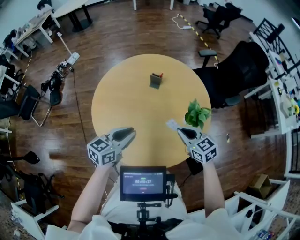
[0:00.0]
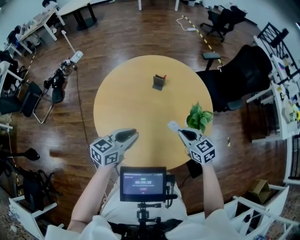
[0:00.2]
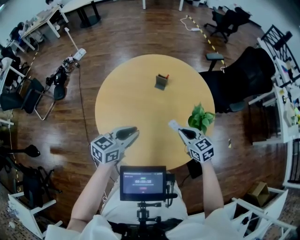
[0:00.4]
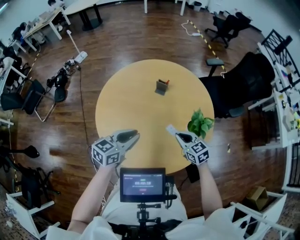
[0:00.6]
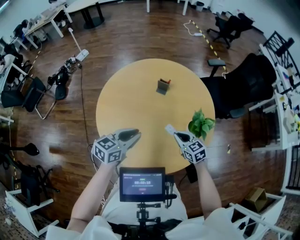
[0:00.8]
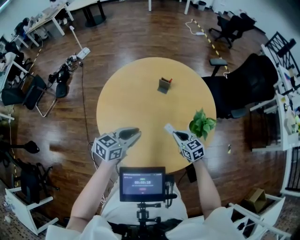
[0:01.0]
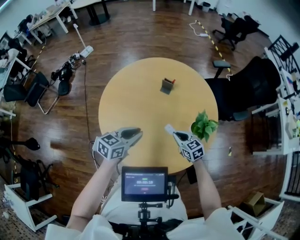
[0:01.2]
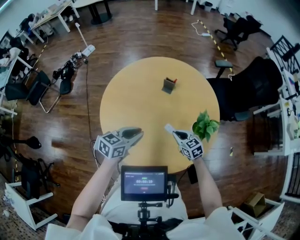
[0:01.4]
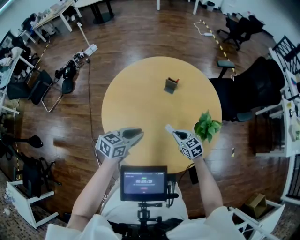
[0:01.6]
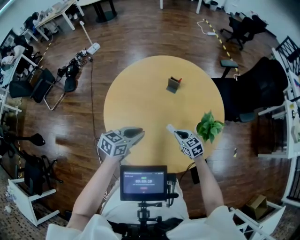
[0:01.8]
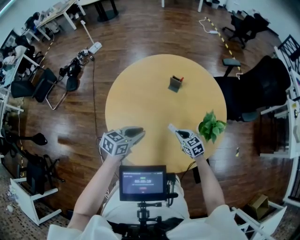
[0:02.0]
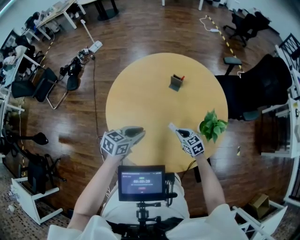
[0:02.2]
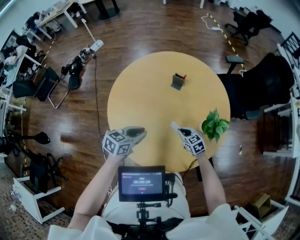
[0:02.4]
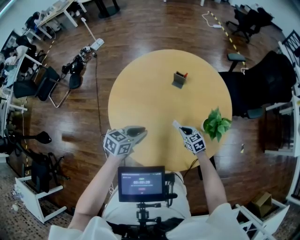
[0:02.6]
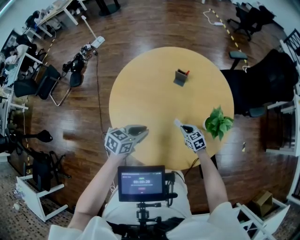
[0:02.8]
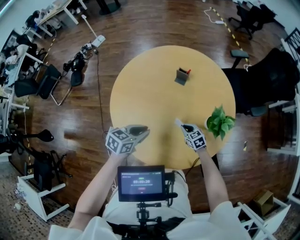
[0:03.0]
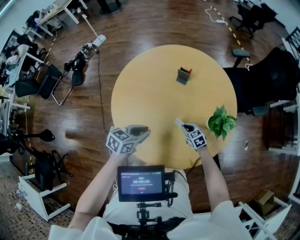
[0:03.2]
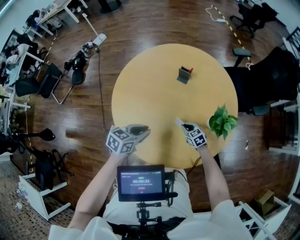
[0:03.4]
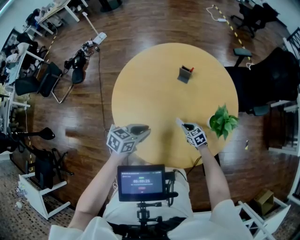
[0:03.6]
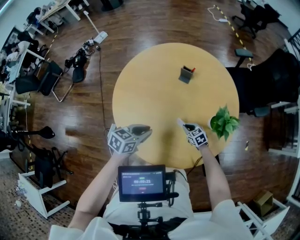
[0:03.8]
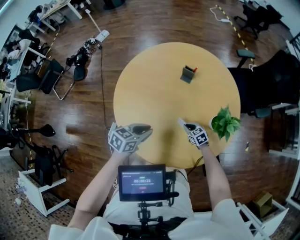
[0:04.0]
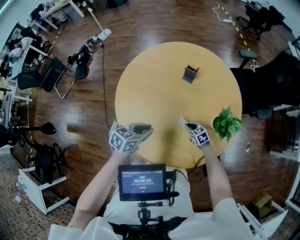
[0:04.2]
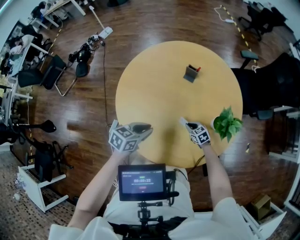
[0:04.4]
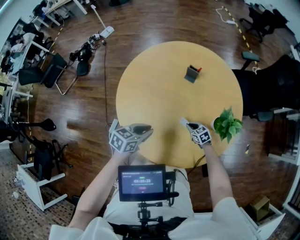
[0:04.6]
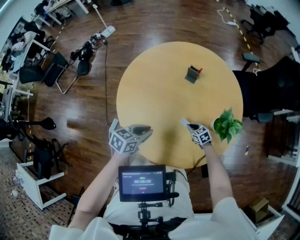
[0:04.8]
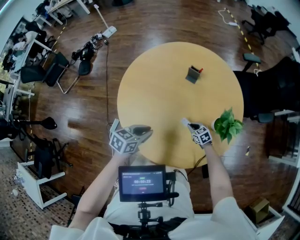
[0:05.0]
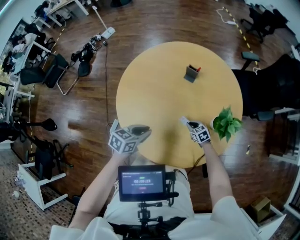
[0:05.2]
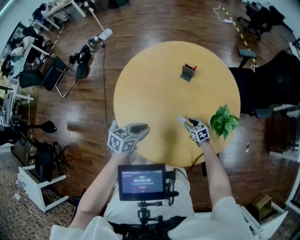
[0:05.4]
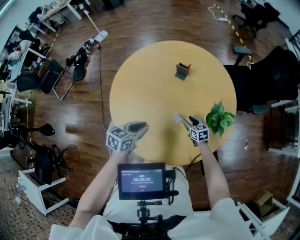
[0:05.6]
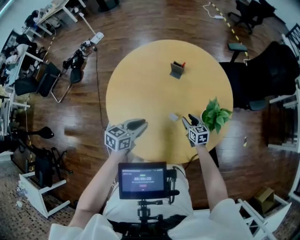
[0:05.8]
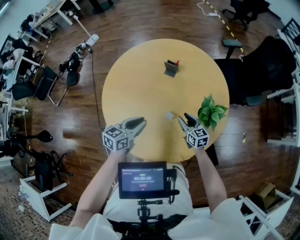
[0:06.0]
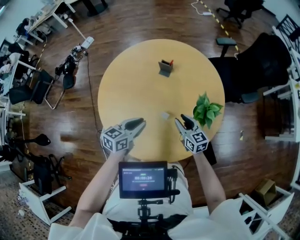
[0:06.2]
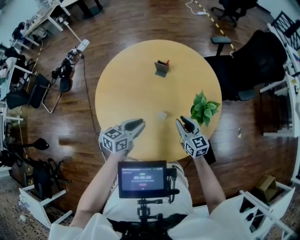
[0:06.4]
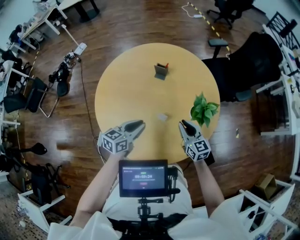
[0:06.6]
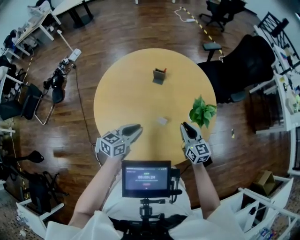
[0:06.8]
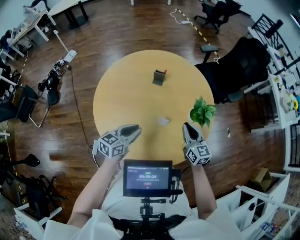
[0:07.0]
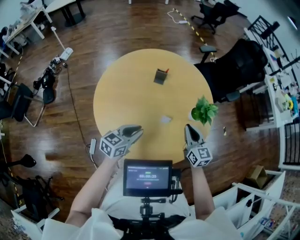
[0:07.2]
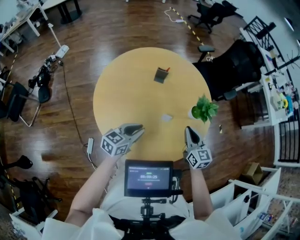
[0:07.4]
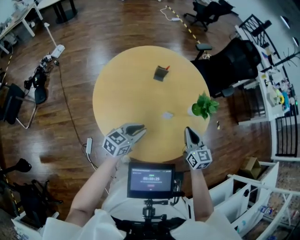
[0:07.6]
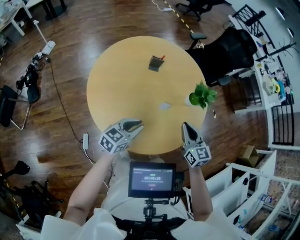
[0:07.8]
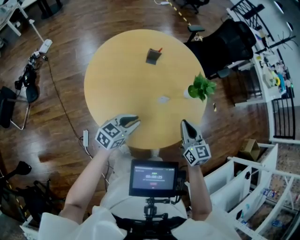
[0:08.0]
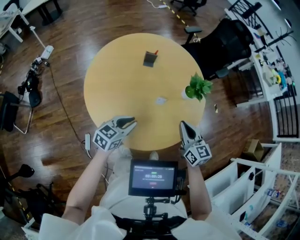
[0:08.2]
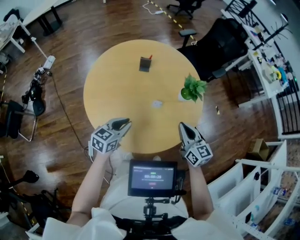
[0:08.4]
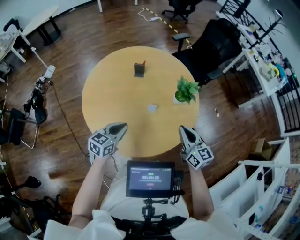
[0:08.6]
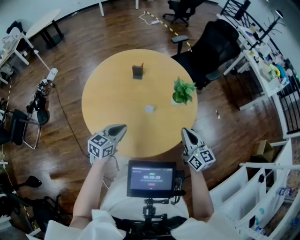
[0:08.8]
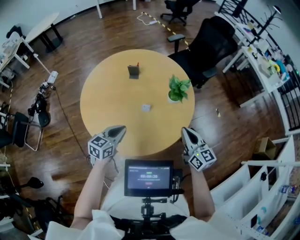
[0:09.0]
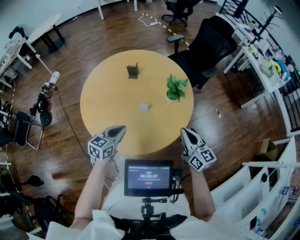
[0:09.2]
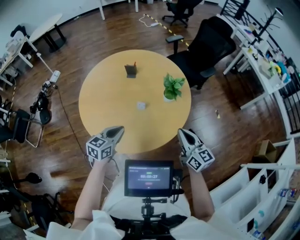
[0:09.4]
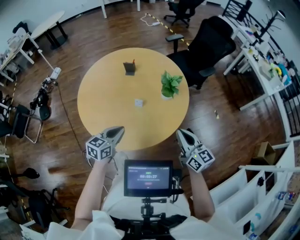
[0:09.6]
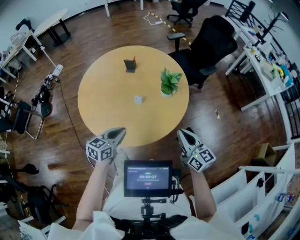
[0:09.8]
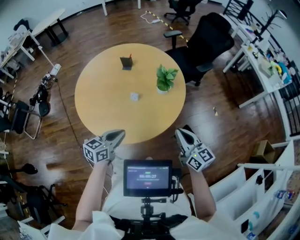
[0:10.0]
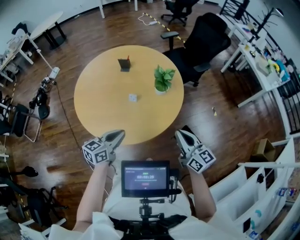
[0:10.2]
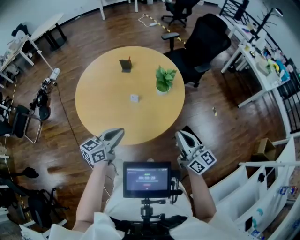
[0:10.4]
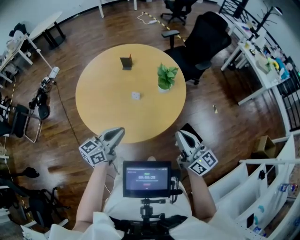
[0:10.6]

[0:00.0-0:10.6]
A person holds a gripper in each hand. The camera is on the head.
0:00.0 to 0:01.6: The left gripper is displaced downward by some 5 cm. Meanwhile the right gripper shifts approximately 15 cm downward.
0:01.6 to 0:03.0: The left gripper changes place by about 5 cm, while the right gripper moves downward, some 10 cm.
0:03.0 to 0:04.6: The right gripper goes some 5 cm downward.
0:04.6 to 0:06.0: The left gripper moves to the right, some 5 cm. Meanwhile the right gripper heads upward, covering approximately 15 cm, swivels about 30 degrees, and opens its fingers.
0:06.0 to 0:07.6: The right gripper heads upward, covering about 15 cm, changes its angle by roughly 30 degrees, and closes up. Meanwhile the left gripper moves some 10 cm, and turns by about 30 degrees.
0:07.6 to 0:09.0: The left gripper shifts some 10 cm to the right; the right gripper heads to the right and backward, covering roughly 20 cm.
0:09.0 to 0:10.6: Both grippers move backward, to the right and upward, about 15 cm. The left gripper turns by approximately 20 degrees.

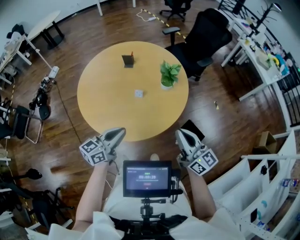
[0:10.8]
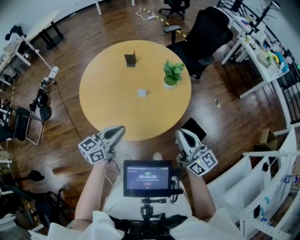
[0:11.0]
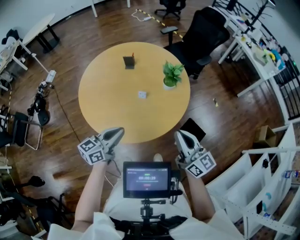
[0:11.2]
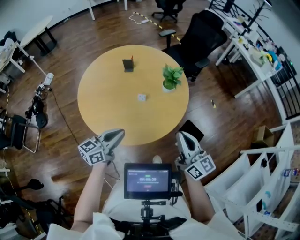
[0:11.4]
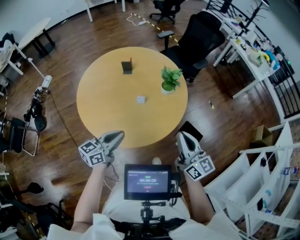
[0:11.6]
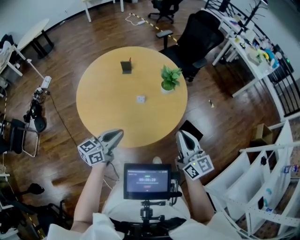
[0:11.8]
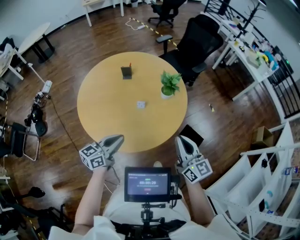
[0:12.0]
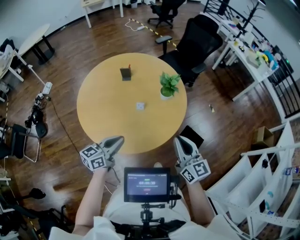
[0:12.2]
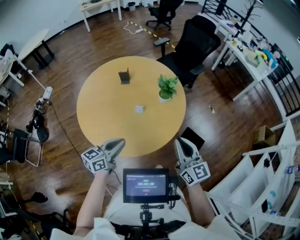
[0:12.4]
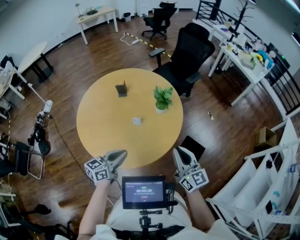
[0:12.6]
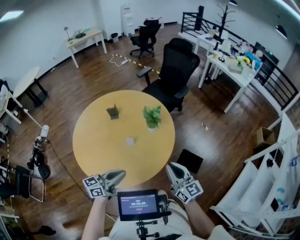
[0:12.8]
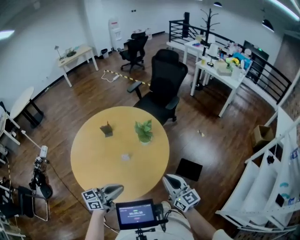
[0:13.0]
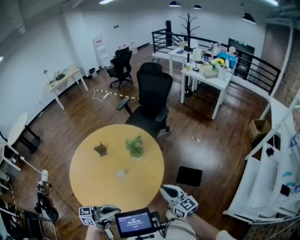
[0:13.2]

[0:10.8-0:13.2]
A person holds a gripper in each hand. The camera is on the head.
0:10.8 to 0:12.0: Both grippers travel together to the left, about 5 cm.
0:12.0 to 0:13.2: The right gripper travels to the right by some 10 cm. Meanwhile the left gripper moves to the right and upward, approximately 15 cm, and turns by approximately 40 degrees.

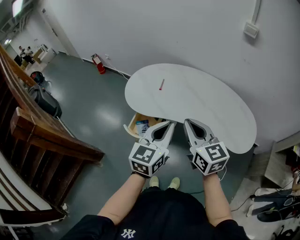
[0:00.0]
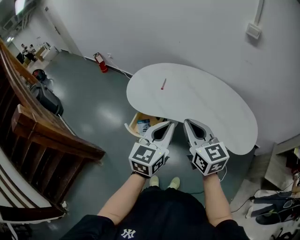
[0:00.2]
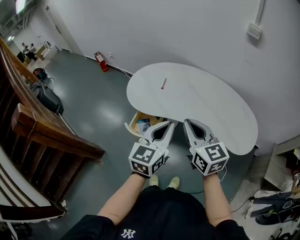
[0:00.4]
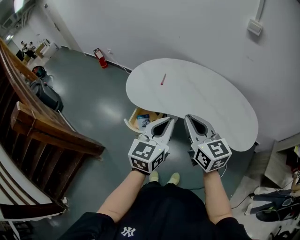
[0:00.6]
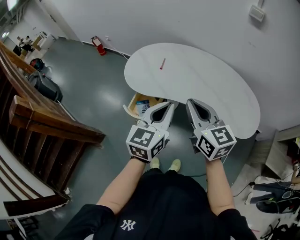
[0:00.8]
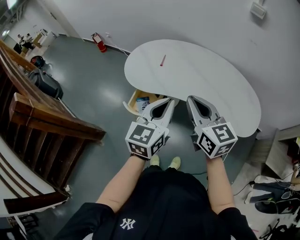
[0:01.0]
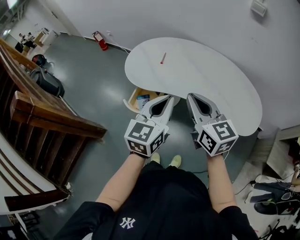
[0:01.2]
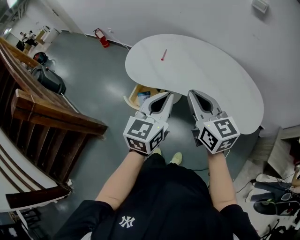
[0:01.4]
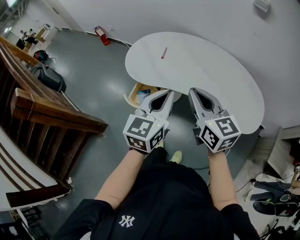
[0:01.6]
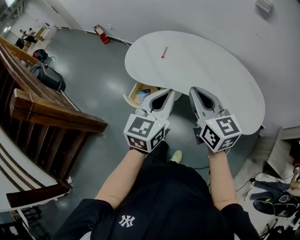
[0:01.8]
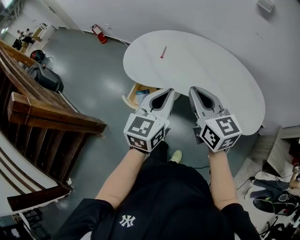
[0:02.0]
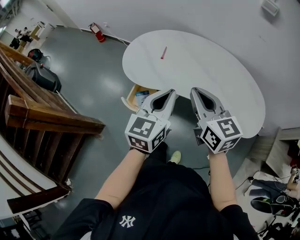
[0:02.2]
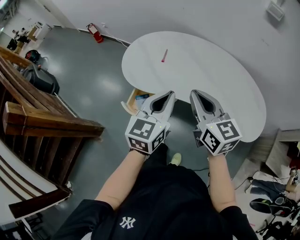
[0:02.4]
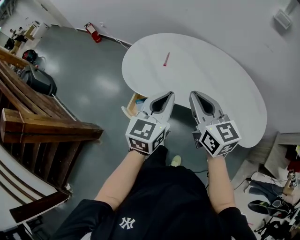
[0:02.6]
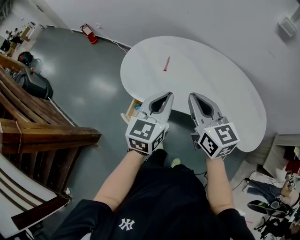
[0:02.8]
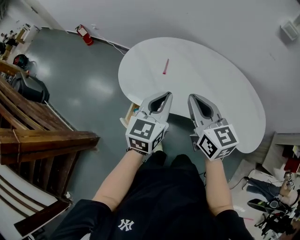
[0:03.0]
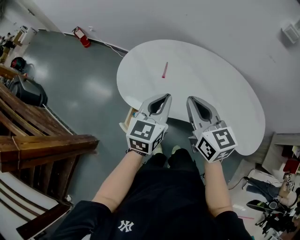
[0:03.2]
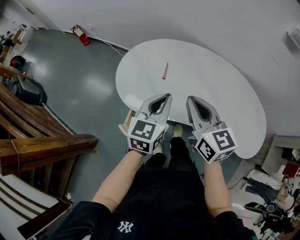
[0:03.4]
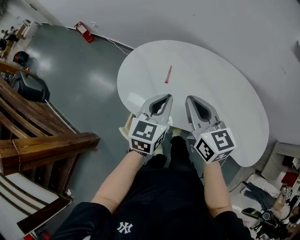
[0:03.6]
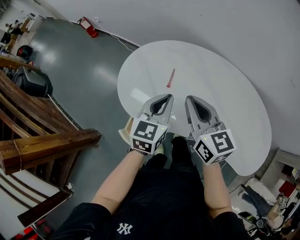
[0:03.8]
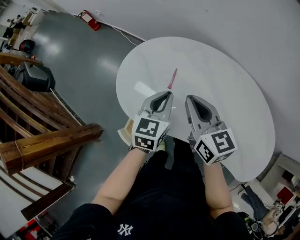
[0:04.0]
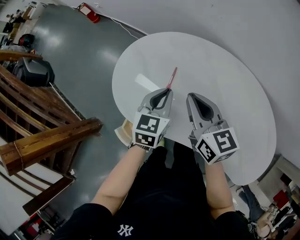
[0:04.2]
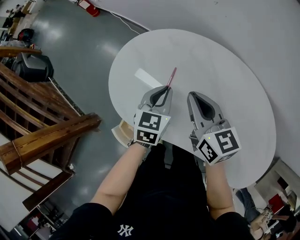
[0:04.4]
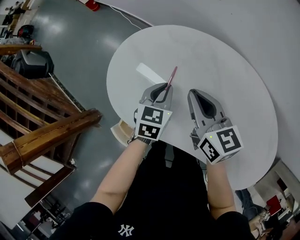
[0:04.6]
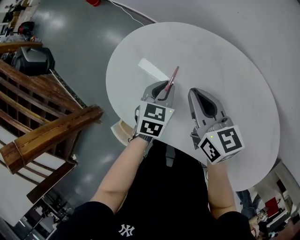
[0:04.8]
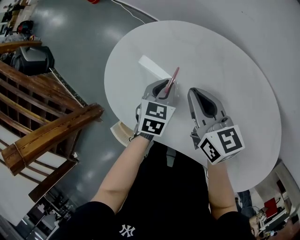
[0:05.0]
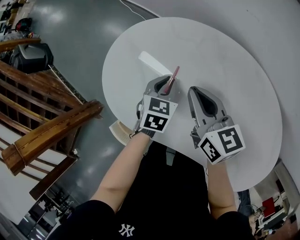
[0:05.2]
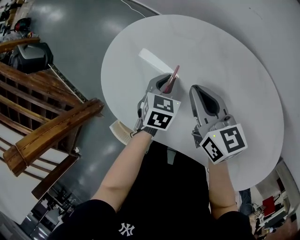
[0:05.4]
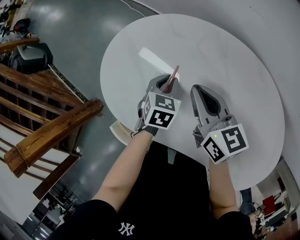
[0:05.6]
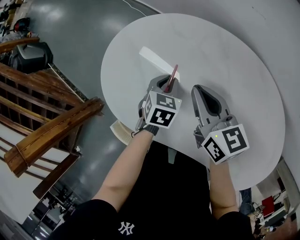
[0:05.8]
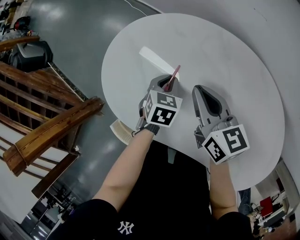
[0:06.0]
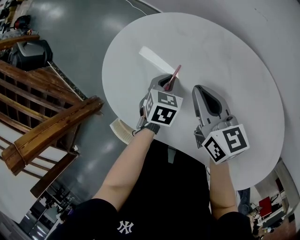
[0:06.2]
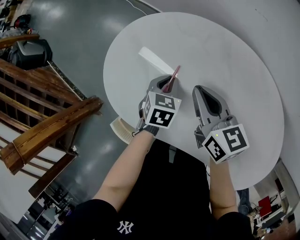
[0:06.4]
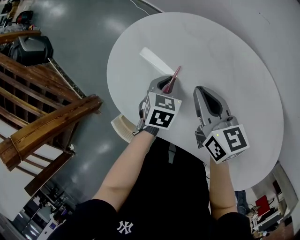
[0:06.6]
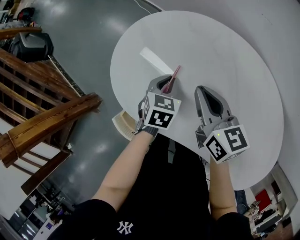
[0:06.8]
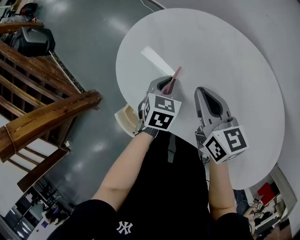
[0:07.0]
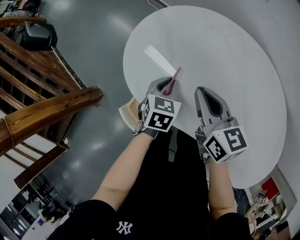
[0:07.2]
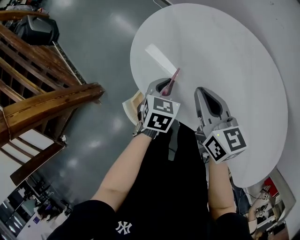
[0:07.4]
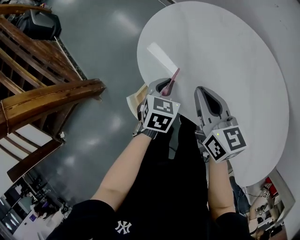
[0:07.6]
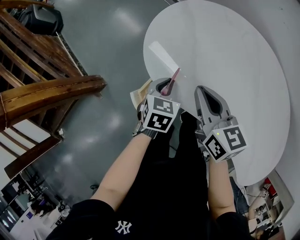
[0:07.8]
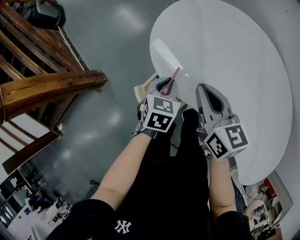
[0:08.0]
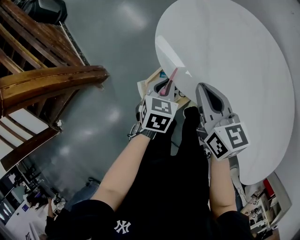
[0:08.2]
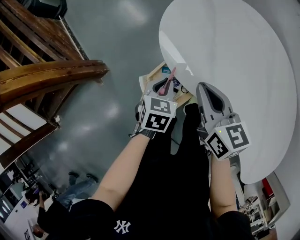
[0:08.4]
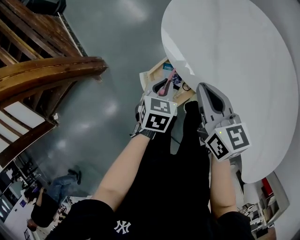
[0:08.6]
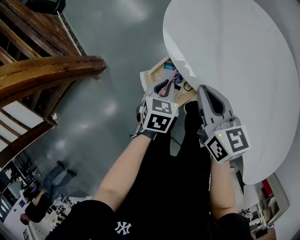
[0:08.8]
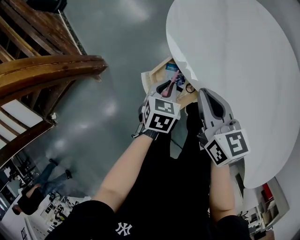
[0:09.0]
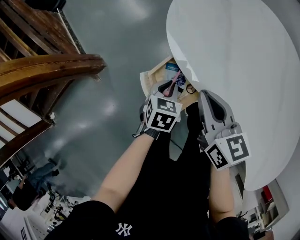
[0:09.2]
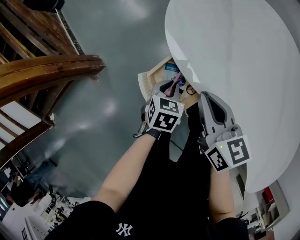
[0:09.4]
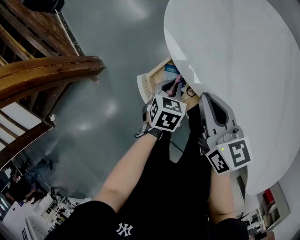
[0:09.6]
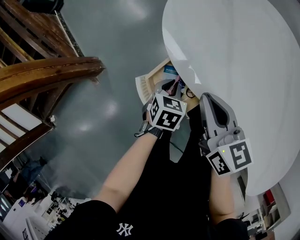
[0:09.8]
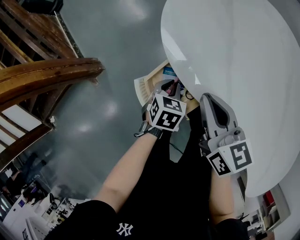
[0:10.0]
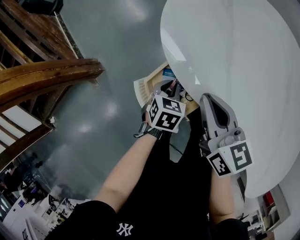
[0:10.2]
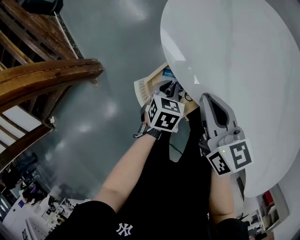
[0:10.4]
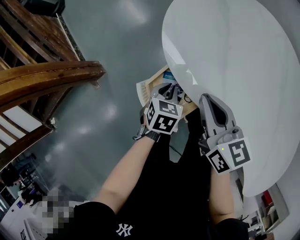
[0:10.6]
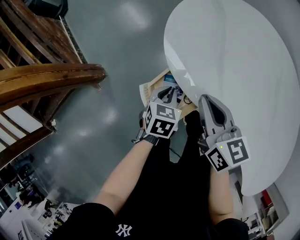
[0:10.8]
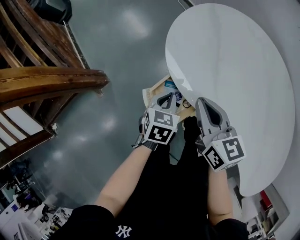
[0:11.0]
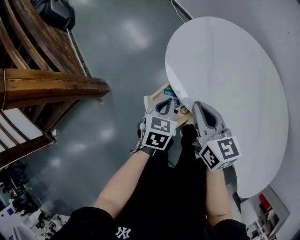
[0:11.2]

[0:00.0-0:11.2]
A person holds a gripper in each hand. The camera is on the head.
0:00.0 to 0:01.6: The grippers stay close to where they were, moving slightly.
0:01.6 to 0:03.2: The two grippers go about 25 cm forward and to the left.
0:03.2 to 0:04.8: The two grippers go about 35 cm forward and downward. The right gripper turns by about 20 degrees; the left gripper points its fingers approximately 30 degrees further downward.
0:04.8 to 0:06.4: The left gripper shifts roughly 5 cm downward.
0:06.4 to 0:08.0: The two grippers go roughly 25 cm to the left and backward.
0:08.0 to 0:09.6: The right gripper travels downward and to the left by roughly 10 cm; the left gripper is displaced downward by about 15 cm.
0:09.6 to 0:11.2: The left gripper travels upward by some 20 cm. The right gripper goes about 10 cm upward.
